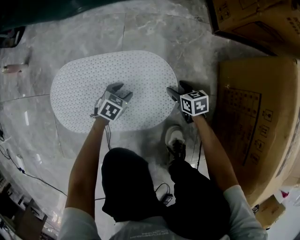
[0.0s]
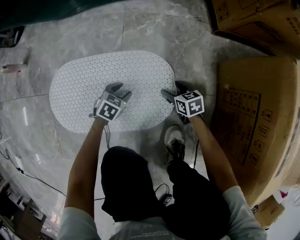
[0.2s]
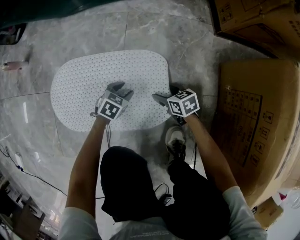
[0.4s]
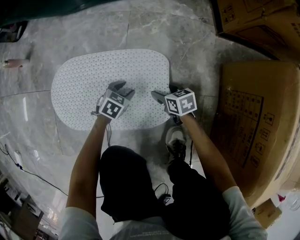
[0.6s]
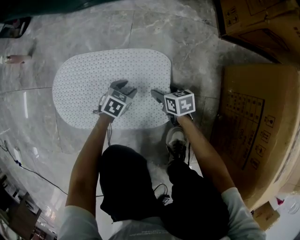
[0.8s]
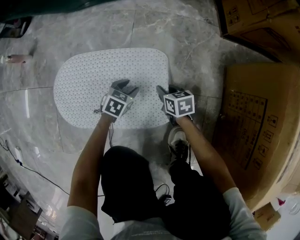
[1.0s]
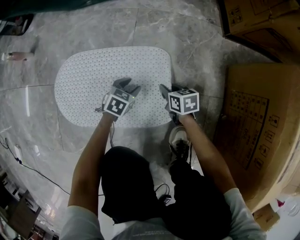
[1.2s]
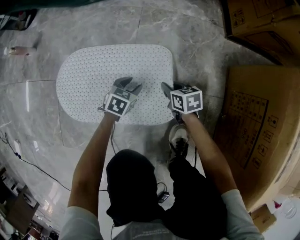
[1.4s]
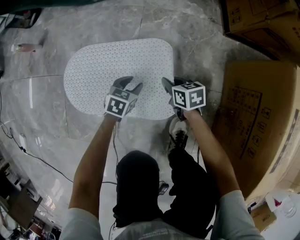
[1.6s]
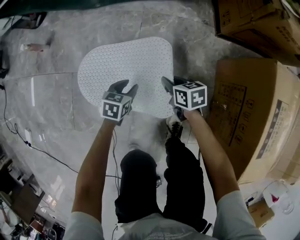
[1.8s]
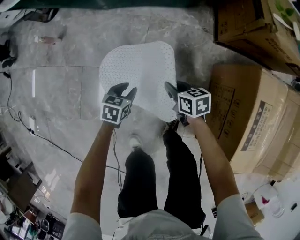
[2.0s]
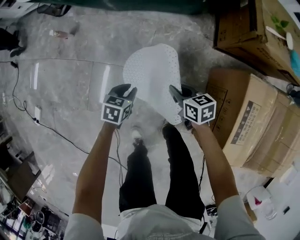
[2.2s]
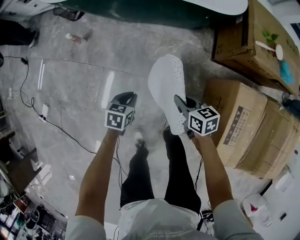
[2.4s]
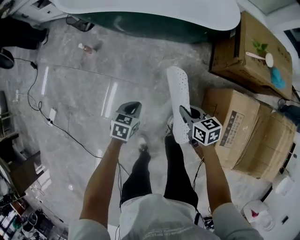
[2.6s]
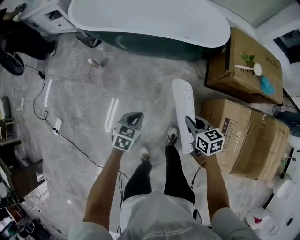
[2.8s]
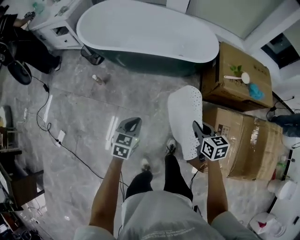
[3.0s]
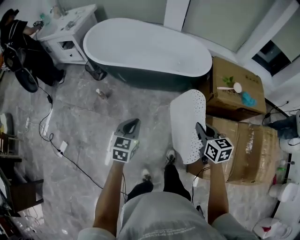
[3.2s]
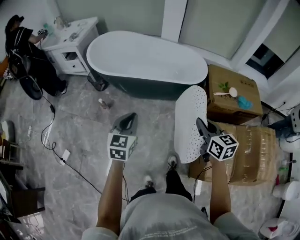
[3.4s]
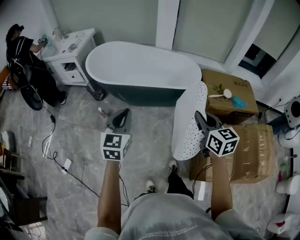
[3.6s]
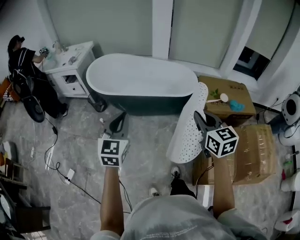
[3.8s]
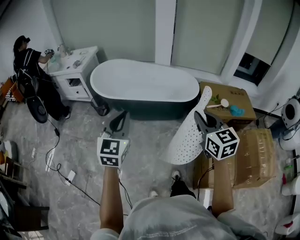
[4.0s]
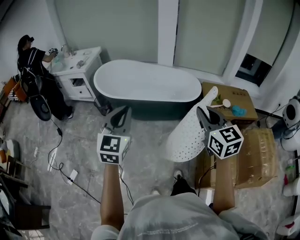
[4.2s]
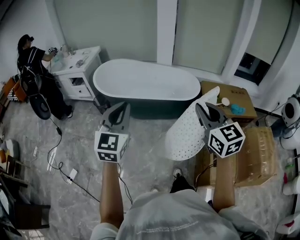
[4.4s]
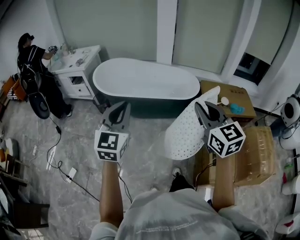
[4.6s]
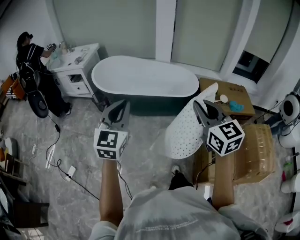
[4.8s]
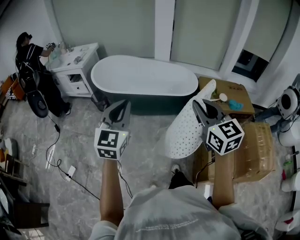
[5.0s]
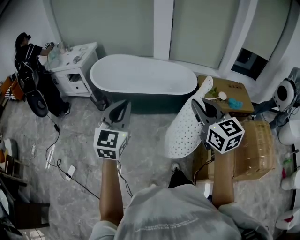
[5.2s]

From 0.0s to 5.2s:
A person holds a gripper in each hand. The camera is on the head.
From 0.0s to 1.8s: The left gripper goes about 15 cm upward, and rotates about 30 degrees. The right gripper is displaced upward and to the left by roughly 20 cm, and closes its fingers.
From 1.8s to 3.4s: The grippers both shift upward by some 80 cm. The left gripper tilts its fingers about 30 degrees upward, and closes; the right gripper swivels approximately 40 degrees.
From 3.4s to 5.2s: The grippers both shift upward and backward by about 25 cm. The right gripper swivels about 20 degrees. The left gripper swivels some 20 degrees.

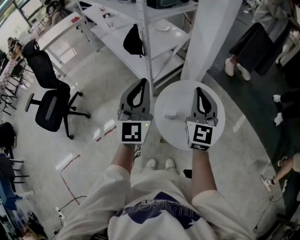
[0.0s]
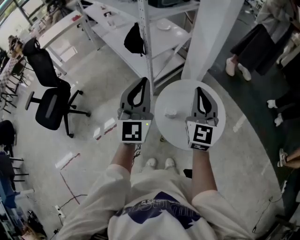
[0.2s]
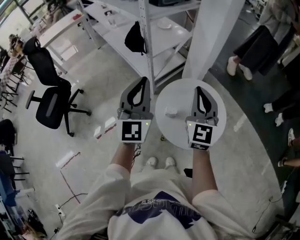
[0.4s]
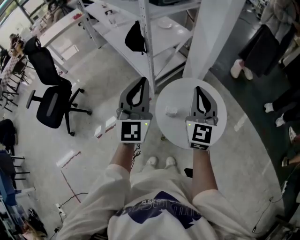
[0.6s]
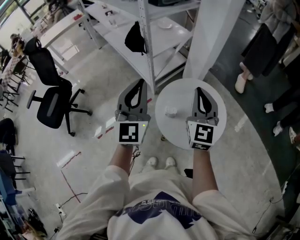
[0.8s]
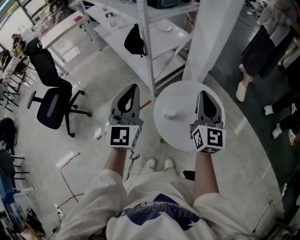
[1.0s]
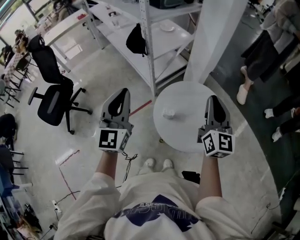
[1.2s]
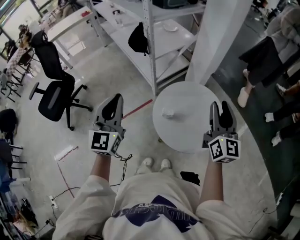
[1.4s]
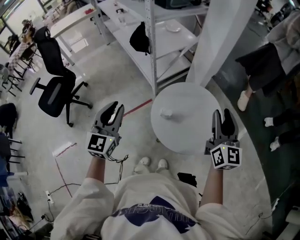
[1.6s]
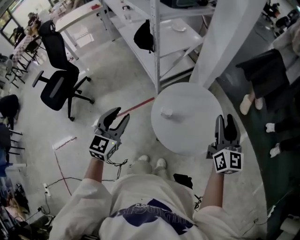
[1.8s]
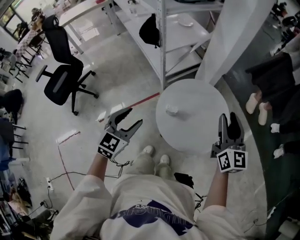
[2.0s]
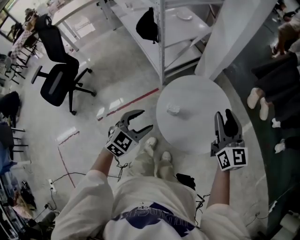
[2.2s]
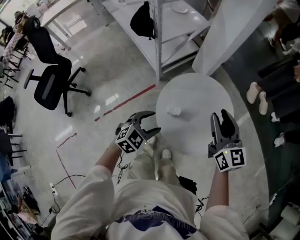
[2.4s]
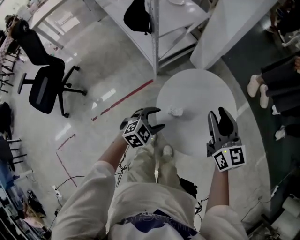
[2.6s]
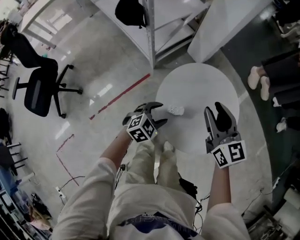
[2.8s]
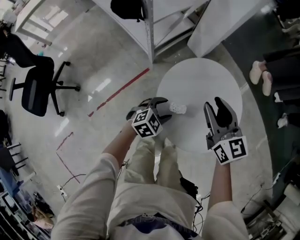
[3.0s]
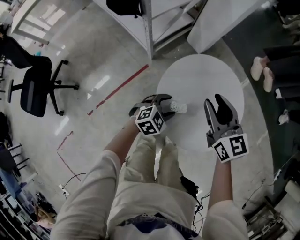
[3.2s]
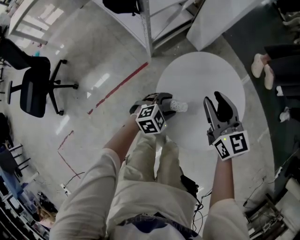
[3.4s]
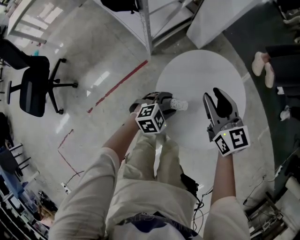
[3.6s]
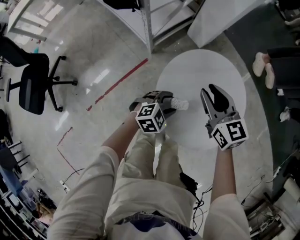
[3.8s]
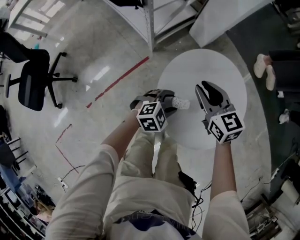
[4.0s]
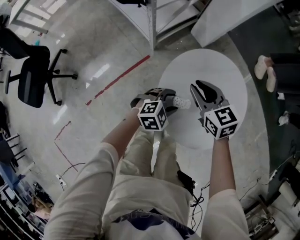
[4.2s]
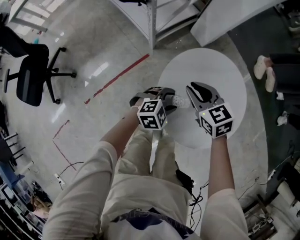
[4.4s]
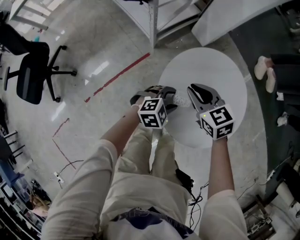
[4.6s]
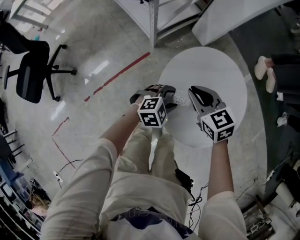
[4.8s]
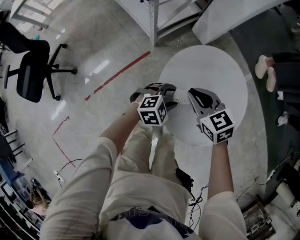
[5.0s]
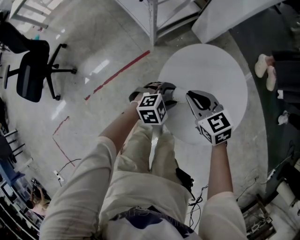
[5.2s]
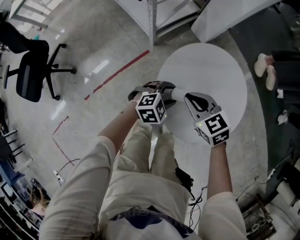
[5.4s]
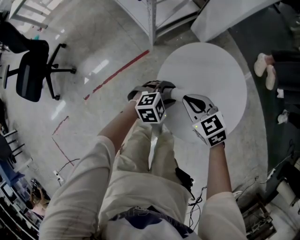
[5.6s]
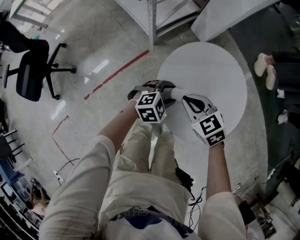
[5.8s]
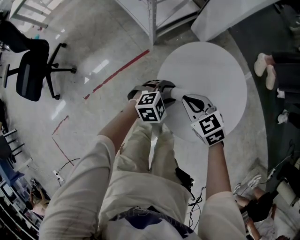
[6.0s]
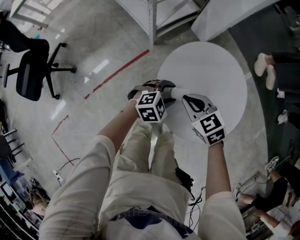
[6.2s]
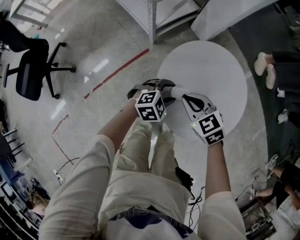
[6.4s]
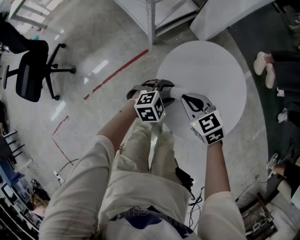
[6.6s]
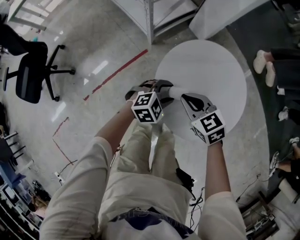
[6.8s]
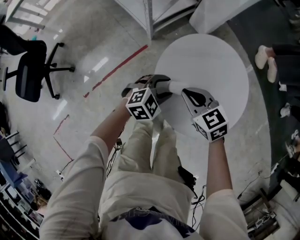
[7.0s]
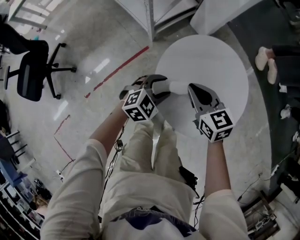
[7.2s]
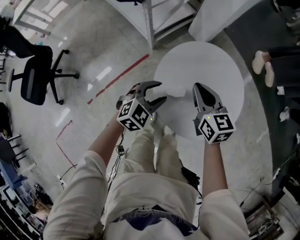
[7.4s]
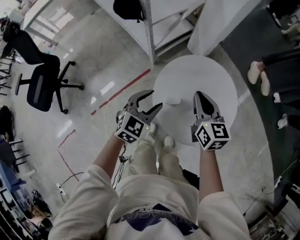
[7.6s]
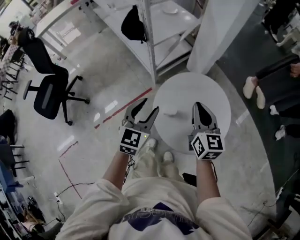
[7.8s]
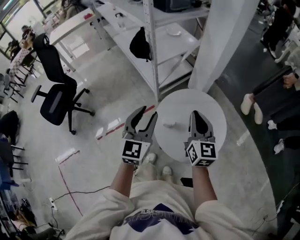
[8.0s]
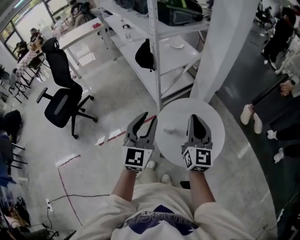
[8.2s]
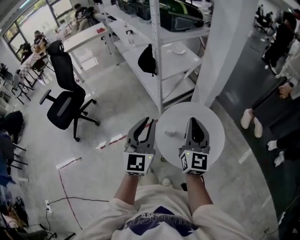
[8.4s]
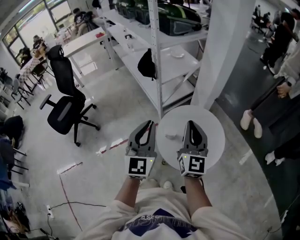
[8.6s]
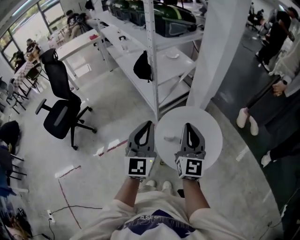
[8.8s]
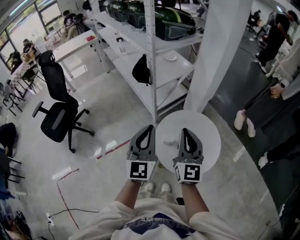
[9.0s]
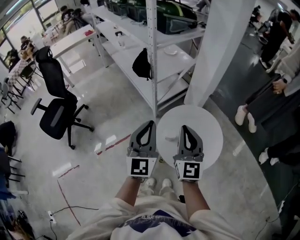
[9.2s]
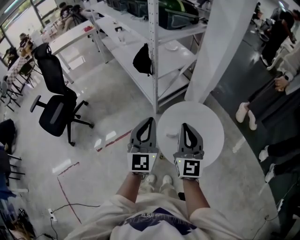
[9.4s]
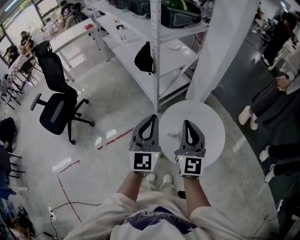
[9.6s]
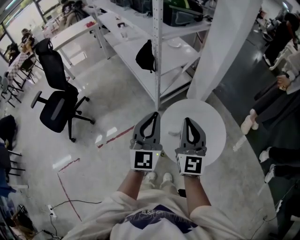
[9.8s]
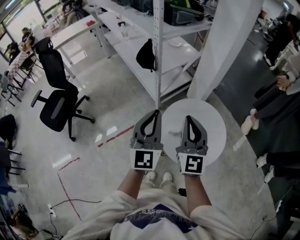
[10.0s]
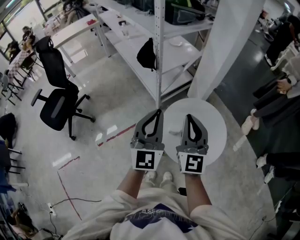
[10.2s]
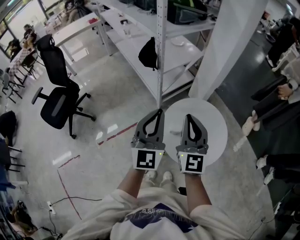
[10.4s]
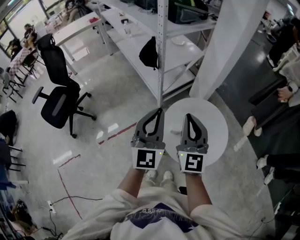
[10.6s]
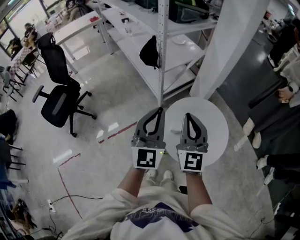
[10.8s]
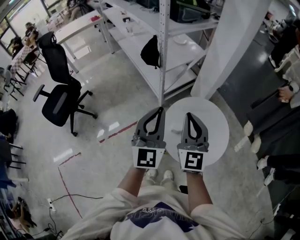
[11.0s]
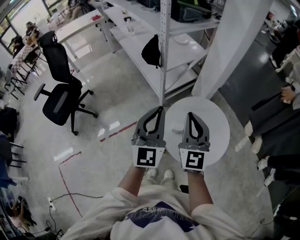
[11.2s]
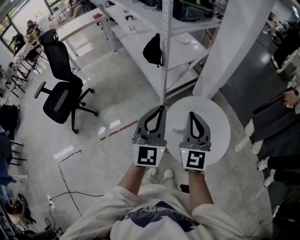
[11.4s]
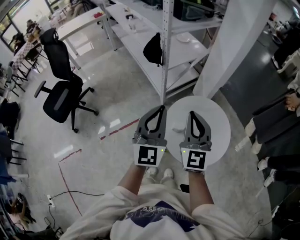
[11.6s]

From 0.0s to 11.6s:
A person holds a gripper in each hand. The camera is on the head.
From 0.0s to 1.4s: The right gripper travels to the right by some 10 cm, changes its angle by approximately 20 degrees, and opens up, while the left gripper heads to the left and backward, covering some 10 cm.
From 1.4s to 2.8s: The right gripper travels downward, to the left and forward by approximately 20 cm, and rotates some 20 degrees. The left gripper shifts approximately 35 cm downward, tilts its fingers roughly 50 degrees downward, and opens.
From 2.8s to 4.4s: The right gripper travels downward and to the left by some 15 cm, and changes its angle by roughly 30 degrees; the left gripper changes place by roughly 5 cm.
From 4.4s to 5.8s: The right gripper shifts some 10 cm backward.
From 5.8s to 7.2s: The right gripper swivels some 20 degrees.
From 7.2s to 8.8s: The two grippers go approximately 35 cm upward. The right gripper tips its fingers upward by about 40 degrees. The left gripper tilts its fingers roughly 50 degrees upward, and closes its fingers.
From 8.8s to 10.2s: The right gripper goes roughly 5 cm to the left.
From 10.2s to 11.6s: The grippers move only a little.

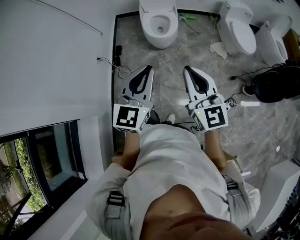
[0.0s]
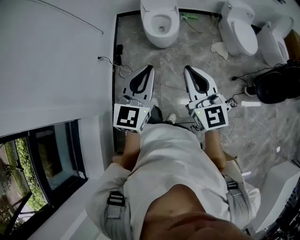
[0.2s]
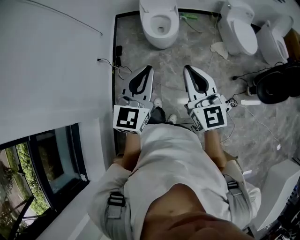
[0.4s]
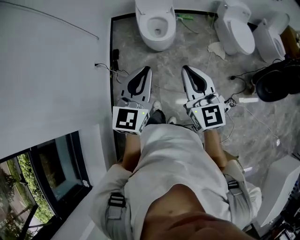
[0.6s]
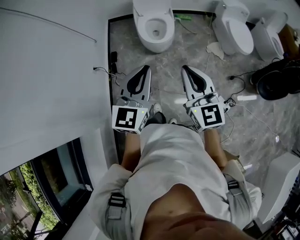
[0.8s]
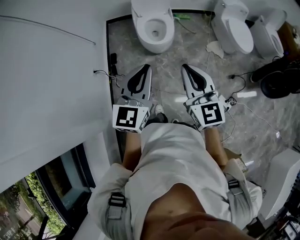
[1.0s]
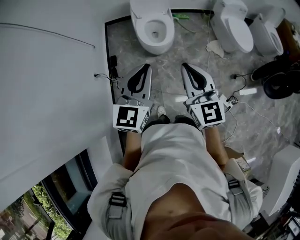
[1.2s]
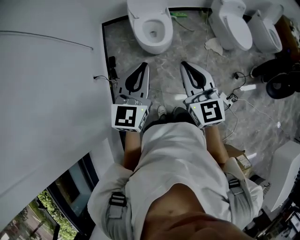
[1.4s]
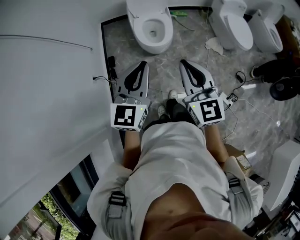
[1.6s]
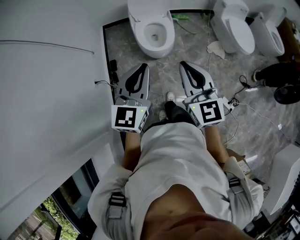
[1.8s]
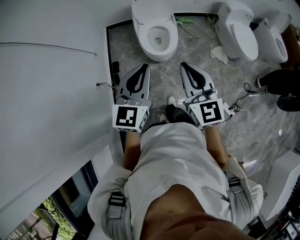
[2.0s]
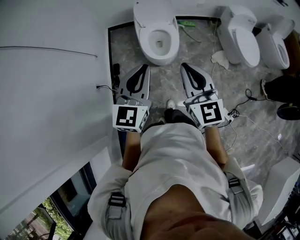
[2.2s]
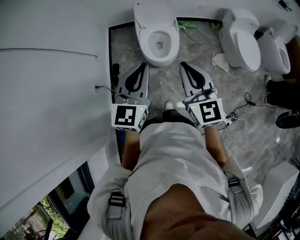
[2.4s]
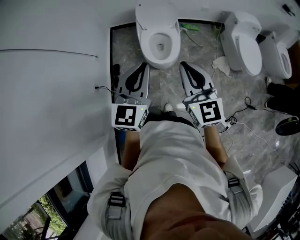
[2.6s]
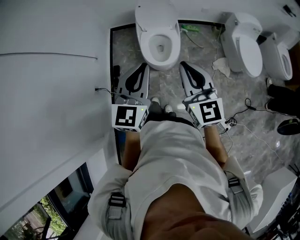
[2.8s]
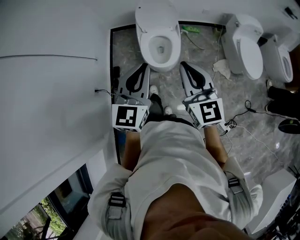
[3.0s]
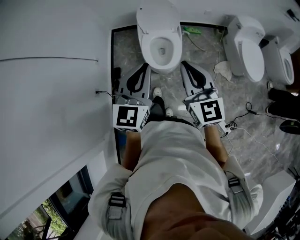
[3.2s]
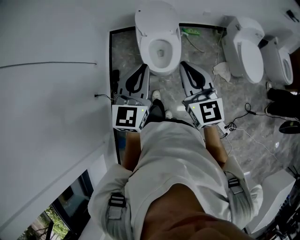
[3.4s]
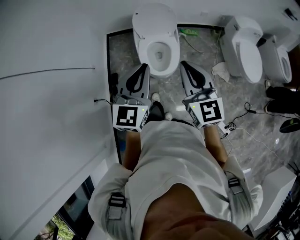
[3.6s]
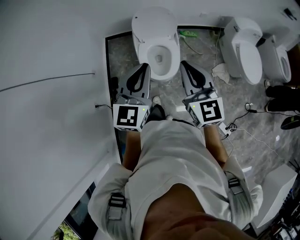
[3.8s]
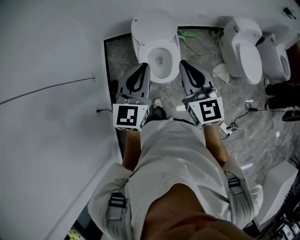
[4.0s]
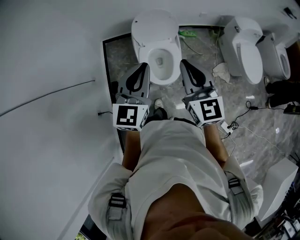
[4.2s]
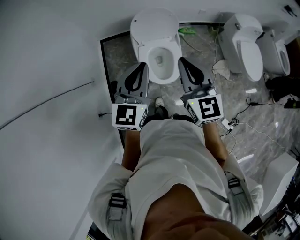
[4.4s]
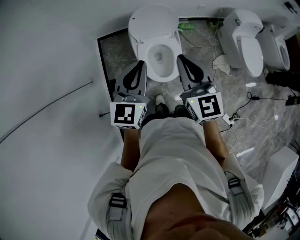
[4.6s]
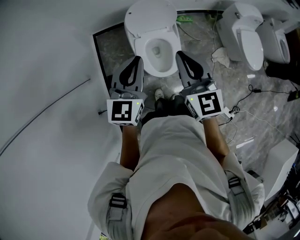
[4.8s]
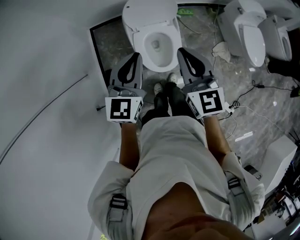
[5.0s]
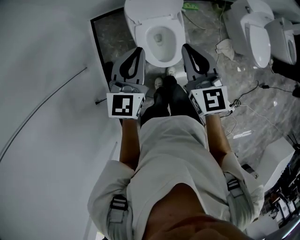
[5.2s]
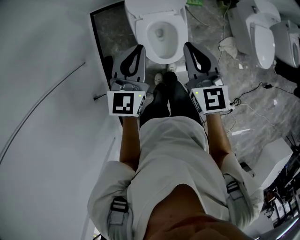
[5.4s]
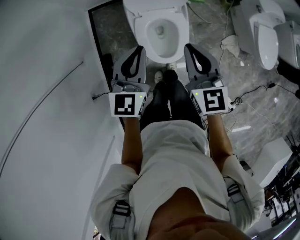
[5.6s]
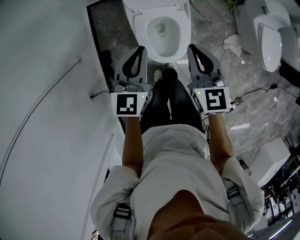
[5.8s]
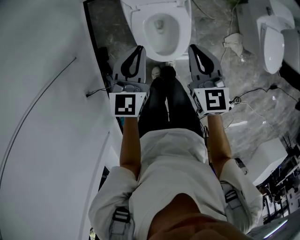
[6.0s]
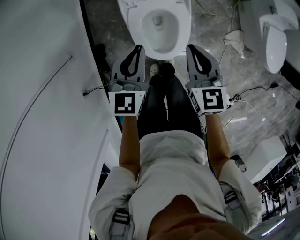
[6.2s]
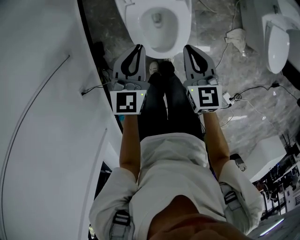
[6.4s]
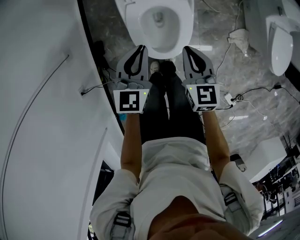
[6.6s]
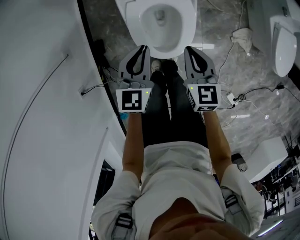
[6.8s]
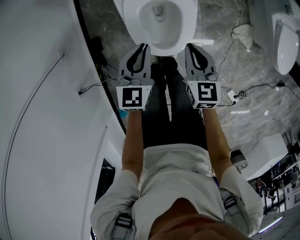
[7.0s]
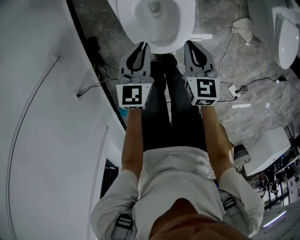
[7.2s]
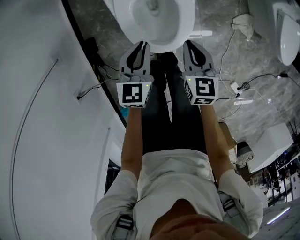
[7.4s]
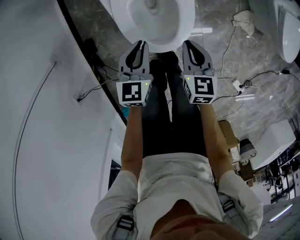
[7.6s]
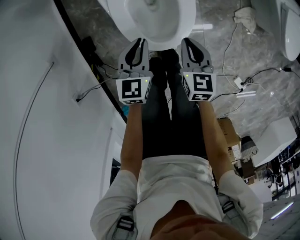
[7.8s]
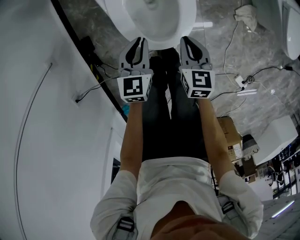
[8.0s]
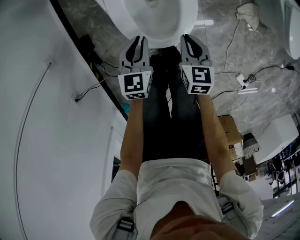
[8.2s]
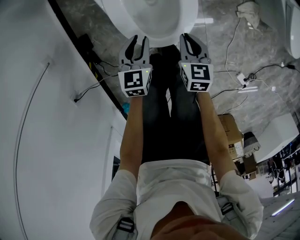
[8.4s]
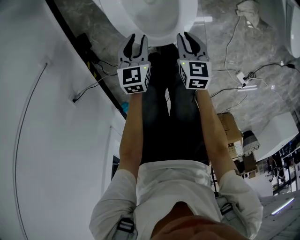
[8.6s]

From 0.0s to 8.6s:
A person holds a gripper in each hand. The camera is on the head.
From 0.0s to 1.4s: The grippers both shift forward and to the left by roughly 20 cm.
From 1.4s to 2.8s: Both grippers move forward, roughly 20 cm.
From 2.8s to 4.4s: Both grippers move forward, about 25 cm.
From 4.4s to 5.8s: The two grippers go roughly 20 cm downward and forward.
From 5.8s to 7.2s: Both grippers travel together downward, about 25 cm.
From 7.2s to 8.6s: The two grippers go roughly 20 cm downward.
